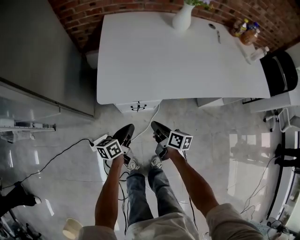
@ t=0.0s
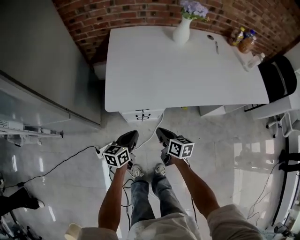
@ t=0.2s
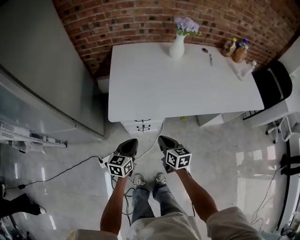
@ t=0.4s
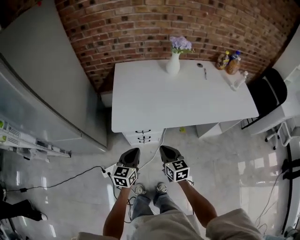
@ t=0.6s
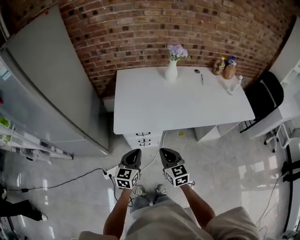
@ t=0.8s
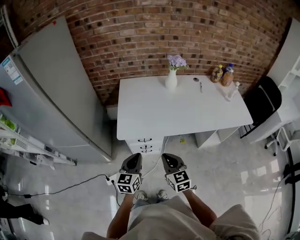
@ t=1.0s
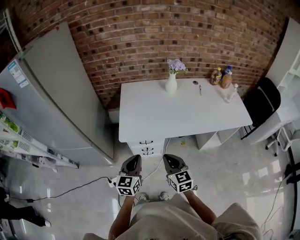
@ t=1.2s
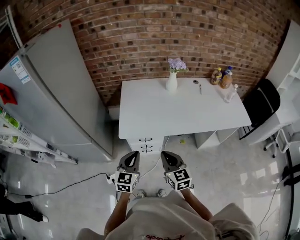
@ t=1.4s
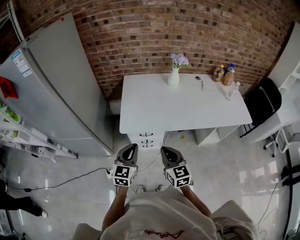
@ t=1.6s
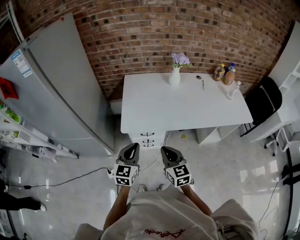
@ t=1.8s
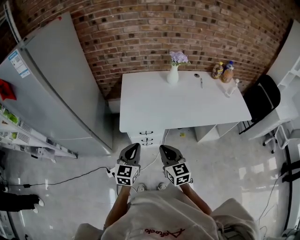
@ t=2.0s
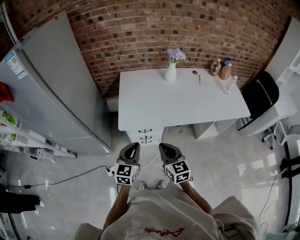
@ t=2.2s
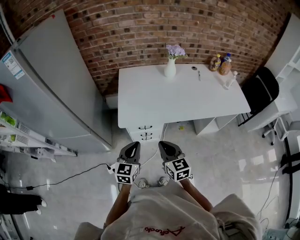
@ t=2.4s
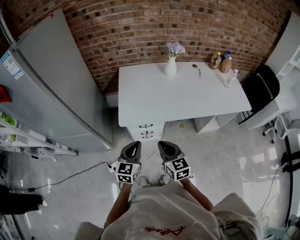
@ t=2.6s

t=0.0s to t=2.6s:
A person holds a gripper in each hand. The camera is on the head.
t=0.0s to t=1.2s: Both grippers travel together upward, some 30 cm. The right gripper twists approximately 50 degrees counterclockwise, seen from behind. Meanwhile the left gripper rotates around the line of its fingers by approximately 40 degrees, clockwise from behind.
t=1.2s to t=2.6s: The grippers stay close to where they were, moving slightly.

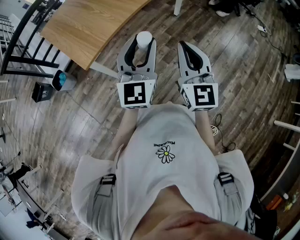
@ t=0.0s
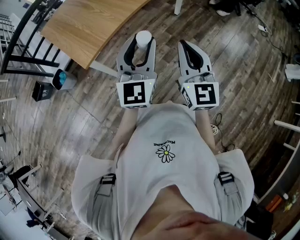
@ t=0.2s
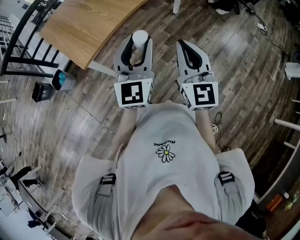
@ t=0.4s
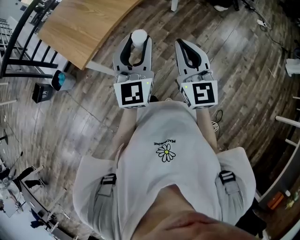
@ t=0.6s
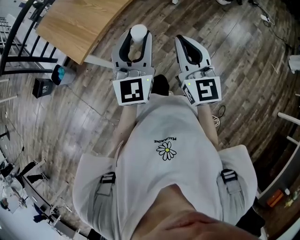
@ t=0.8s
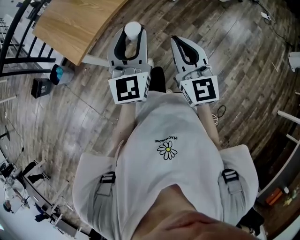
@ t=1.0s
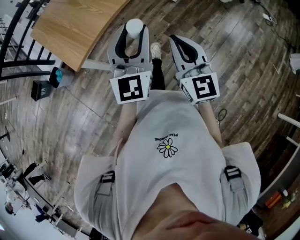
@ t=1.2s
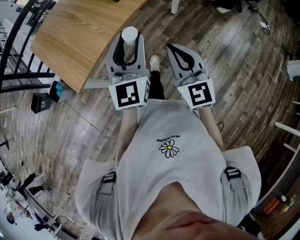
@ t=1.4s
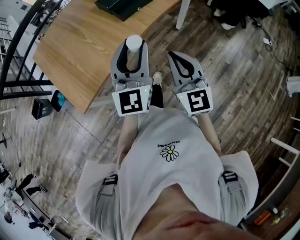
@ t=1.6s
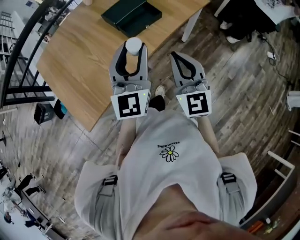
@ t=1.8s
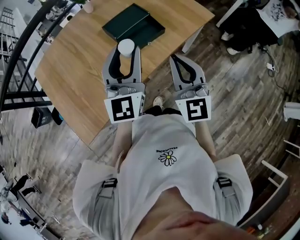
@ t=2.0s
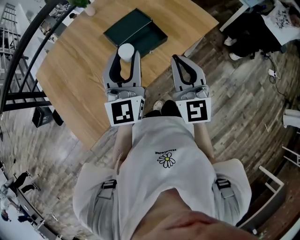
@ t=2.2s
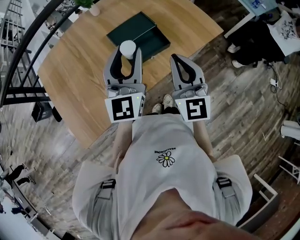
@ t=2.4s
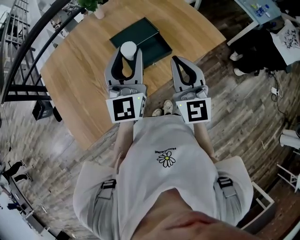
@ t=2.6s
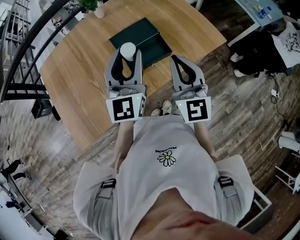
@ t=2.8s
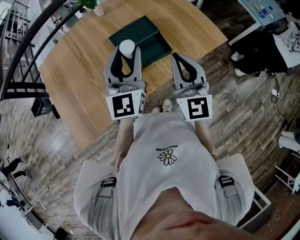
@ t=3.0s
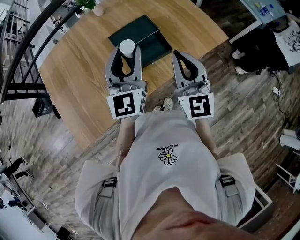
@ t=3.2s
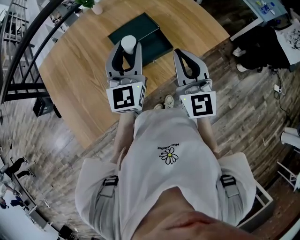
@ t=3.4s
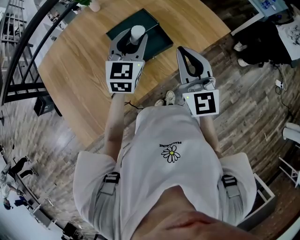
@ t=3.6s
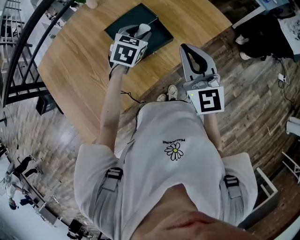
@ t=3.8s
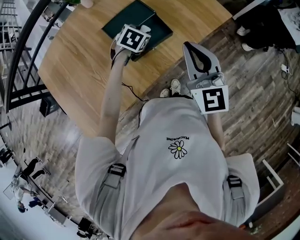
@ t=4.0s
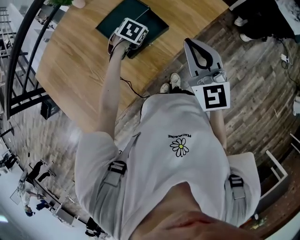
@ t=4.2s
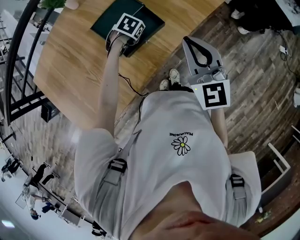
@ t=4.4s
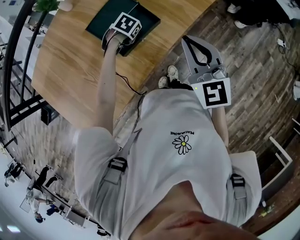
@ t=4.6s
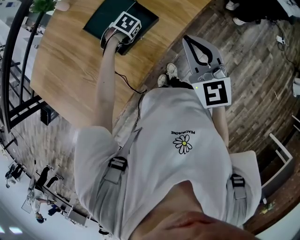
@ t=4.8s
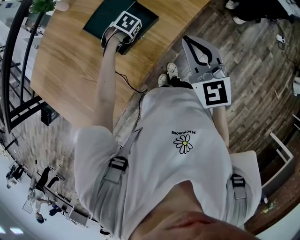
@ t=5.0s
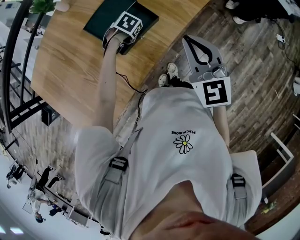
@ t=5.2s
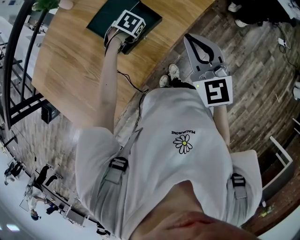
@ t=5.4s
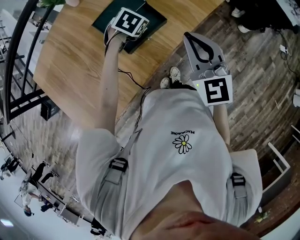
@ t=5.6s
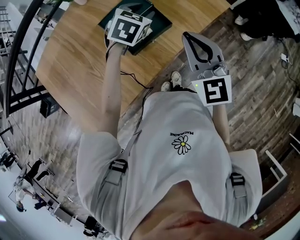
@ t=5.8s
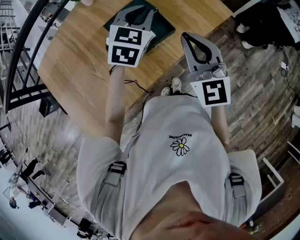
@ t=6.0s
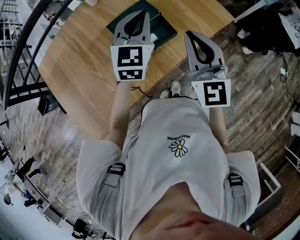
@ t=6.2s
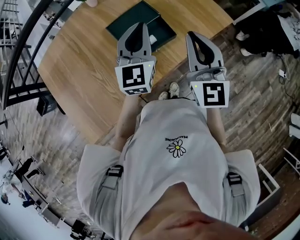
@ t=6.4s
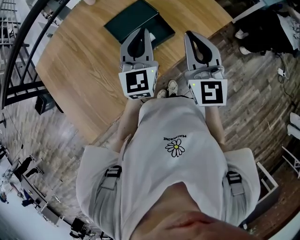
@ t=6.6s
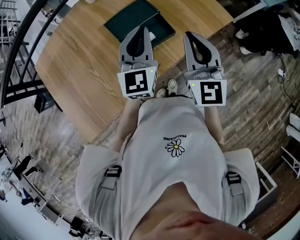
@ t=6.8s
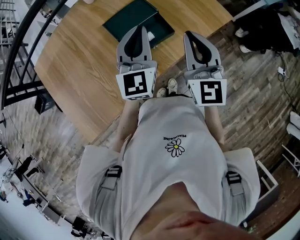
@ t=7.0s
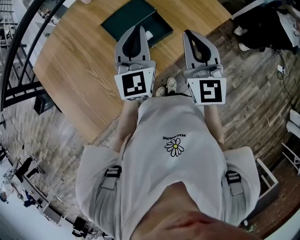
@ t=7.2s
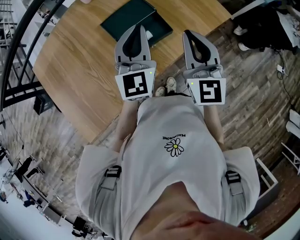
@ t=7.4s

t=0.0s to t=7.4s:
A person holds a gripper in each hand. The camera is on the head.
t=0.0s to t=1.4s: The left gripper moves forward, some 15 cm; the right gripper moves forward and downward, about 15 cm.
t=1.4s to t=3.0s: The pair of grippers is taken forward, roughly 40 cm.
t=3.0s to t=4.4s: The right gripper heads downward, covering some 5 cm. The left gripper moves downward, about 35 cm, and tilts its fingers some 80 degrees downward.
t=4.4s to t=6.0s: The left gripper moves upward, some 25 cm, tips its fingers upward by roughly 50 degrees, and closes its fingers, while the right gripper moves some 5 cm.
t=6.0s to t=7.4s: The left gripper shifts approximately 5 cm backward, and turns by approximately 30 degrees.

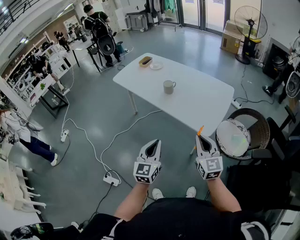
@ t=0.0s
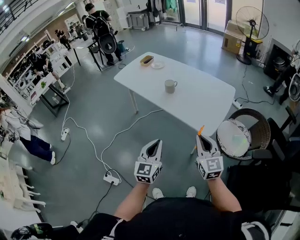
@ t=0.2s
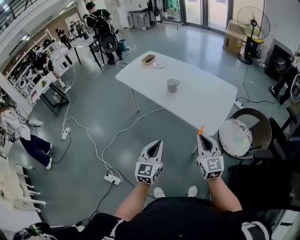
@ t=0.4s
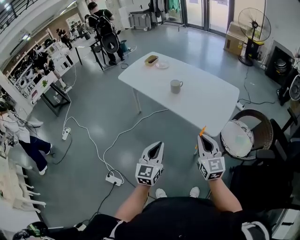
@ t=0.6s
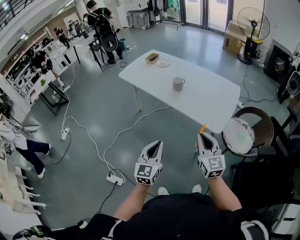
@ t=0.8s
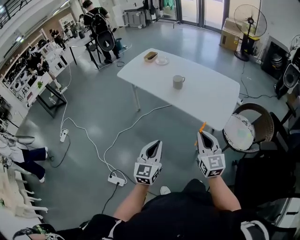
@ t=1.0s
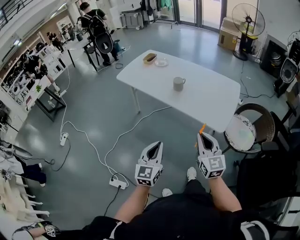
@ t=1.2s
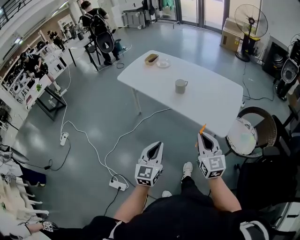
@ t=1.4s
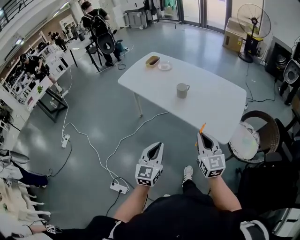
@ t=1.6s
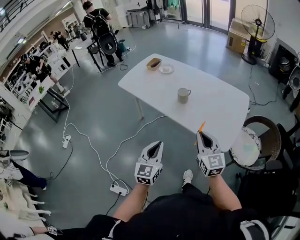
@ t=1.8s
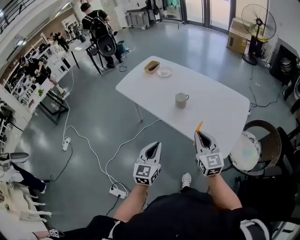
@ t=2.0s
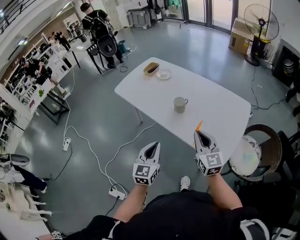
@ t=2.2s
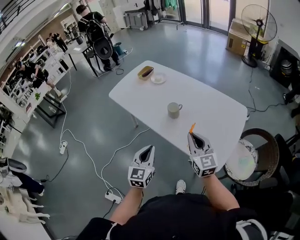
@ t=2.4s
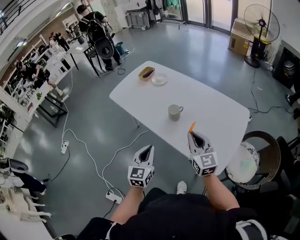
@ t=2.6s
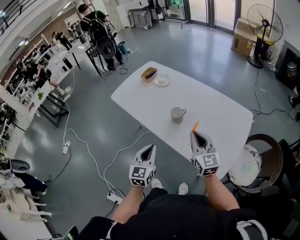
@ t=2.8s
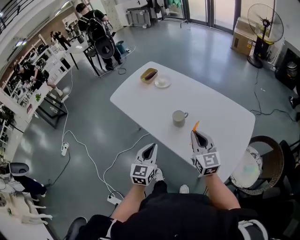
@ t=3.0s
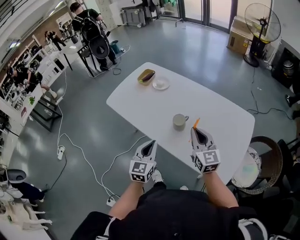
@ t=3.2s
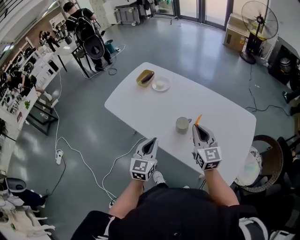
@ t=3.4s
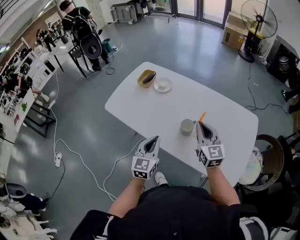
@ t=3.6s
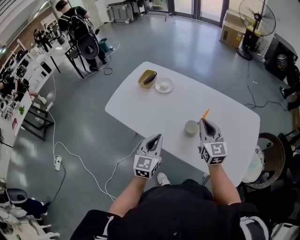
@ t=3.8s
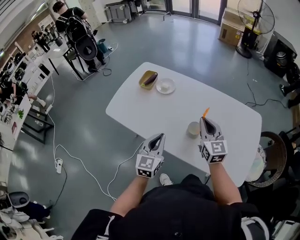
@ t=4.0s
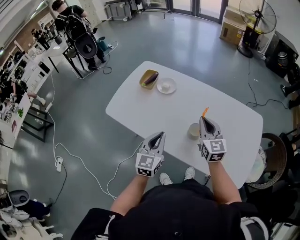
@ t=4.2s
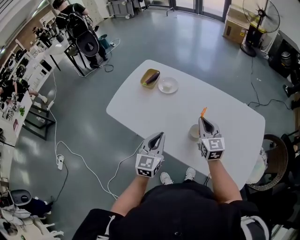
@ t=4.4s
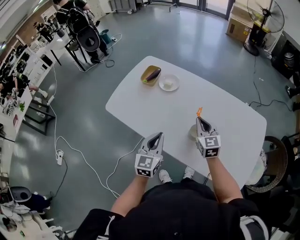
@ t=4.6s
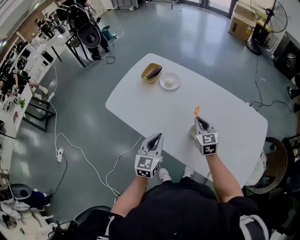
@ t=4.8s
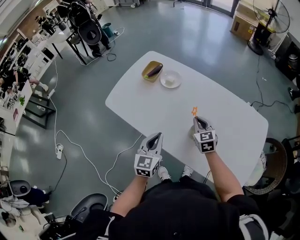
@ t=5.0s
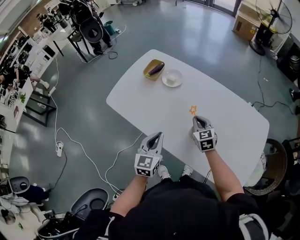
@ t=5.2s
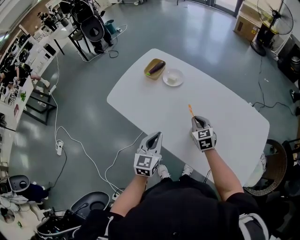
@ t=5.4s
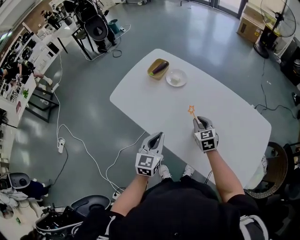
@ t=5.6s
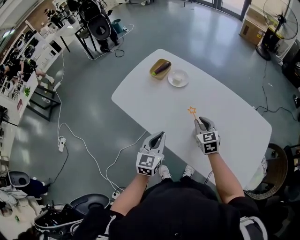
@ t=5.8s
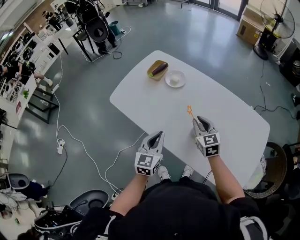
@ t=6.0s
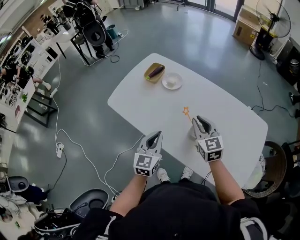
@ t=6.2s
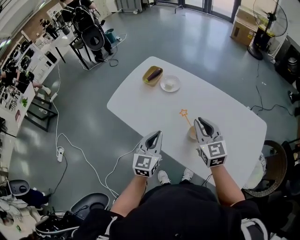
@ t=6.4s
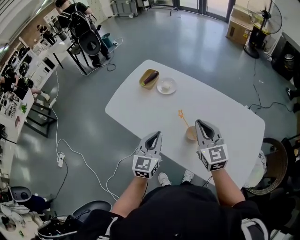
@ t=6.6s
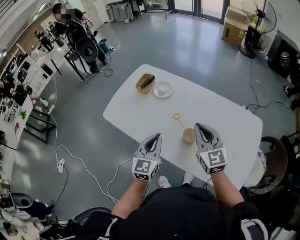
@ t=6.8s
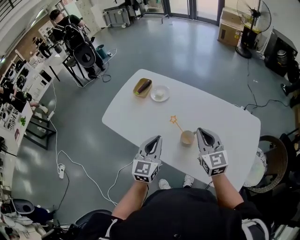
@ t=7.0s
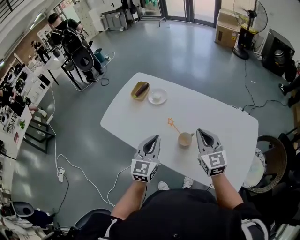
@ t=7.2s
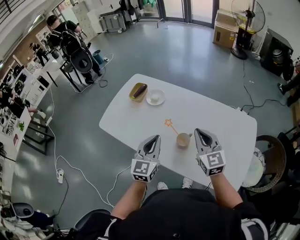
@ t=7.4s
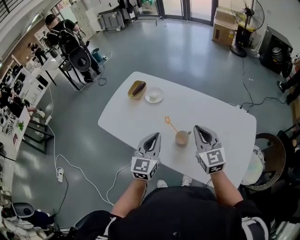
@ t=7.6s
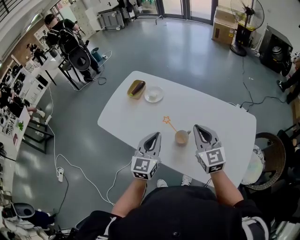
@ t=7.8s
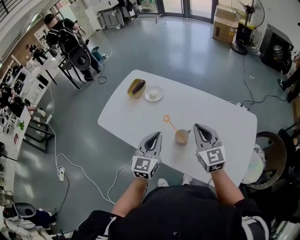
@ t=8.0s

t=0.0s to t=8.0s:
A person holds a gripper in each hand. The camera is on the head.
t=0.0s to t=1.6s: The two grippers go some 15 cm to the left and forward.
t=1.6s to t=3.2s: The two grippers go approximately 35 cm forward.
t=3.2s to t=4.8s: The left gripper heads forward and to the left, covering approximately 15 cm; the right gripper goes roughly 25 cm forward, downward and to the left, and turns by about 20 degrees.
t=4.8s to t=6.4s: The right gripper moves upward, some 10 cm.
t=6.4s to t=8.0s: Both grippers travel together to the right, some 10 cm.

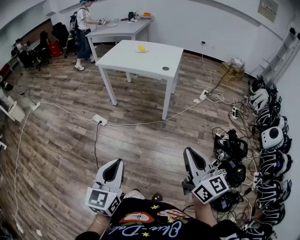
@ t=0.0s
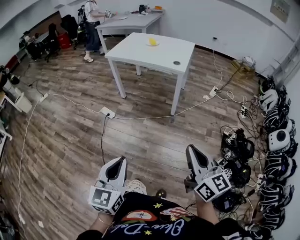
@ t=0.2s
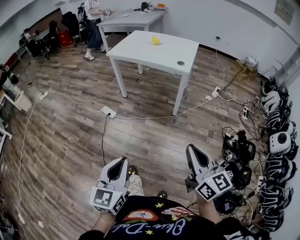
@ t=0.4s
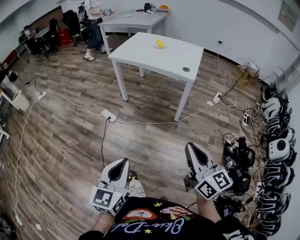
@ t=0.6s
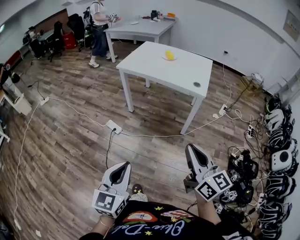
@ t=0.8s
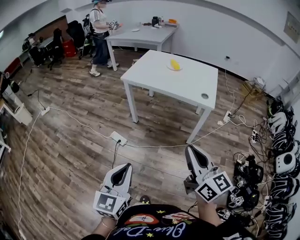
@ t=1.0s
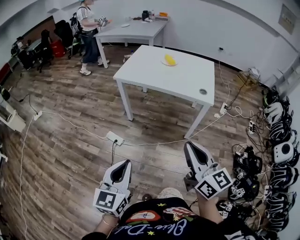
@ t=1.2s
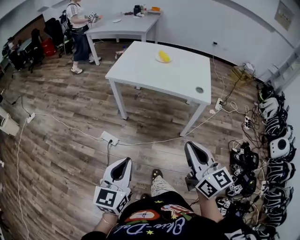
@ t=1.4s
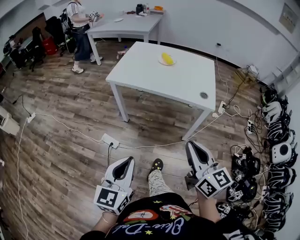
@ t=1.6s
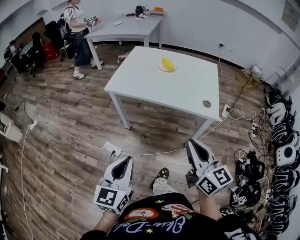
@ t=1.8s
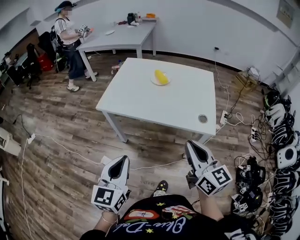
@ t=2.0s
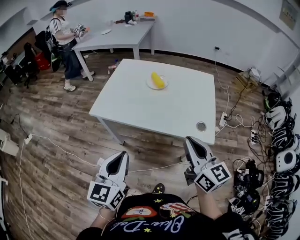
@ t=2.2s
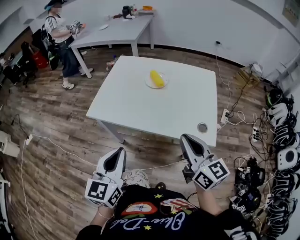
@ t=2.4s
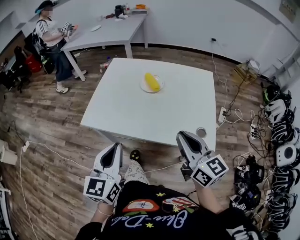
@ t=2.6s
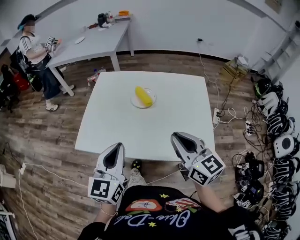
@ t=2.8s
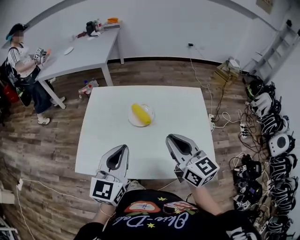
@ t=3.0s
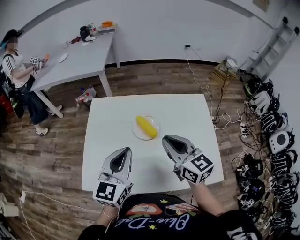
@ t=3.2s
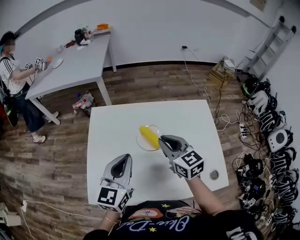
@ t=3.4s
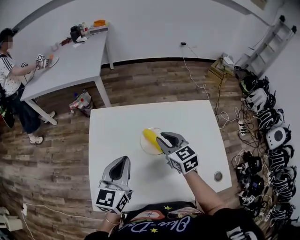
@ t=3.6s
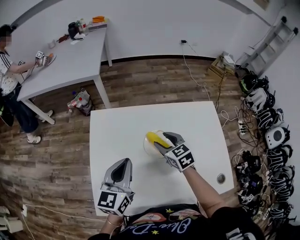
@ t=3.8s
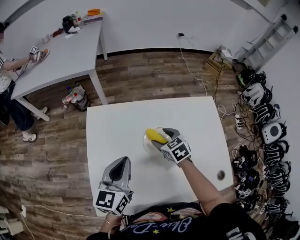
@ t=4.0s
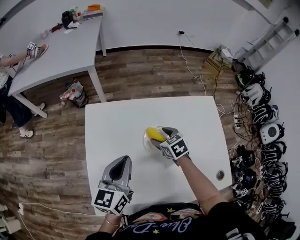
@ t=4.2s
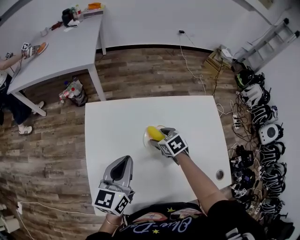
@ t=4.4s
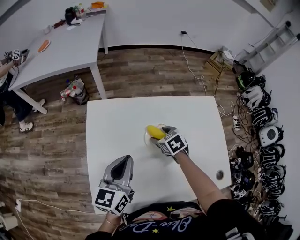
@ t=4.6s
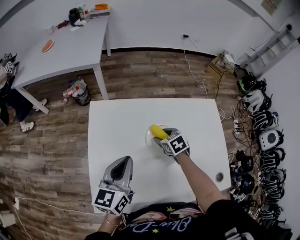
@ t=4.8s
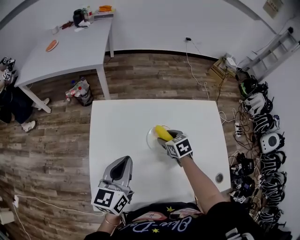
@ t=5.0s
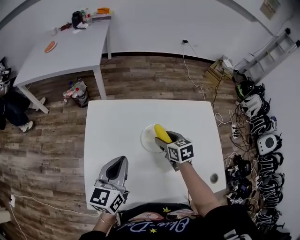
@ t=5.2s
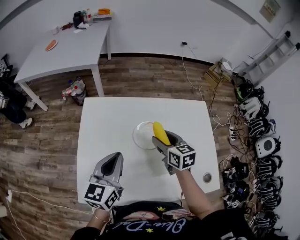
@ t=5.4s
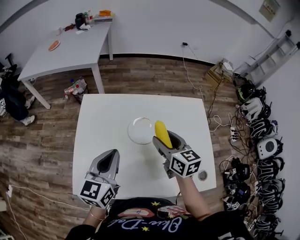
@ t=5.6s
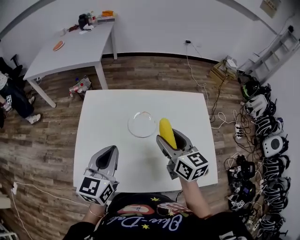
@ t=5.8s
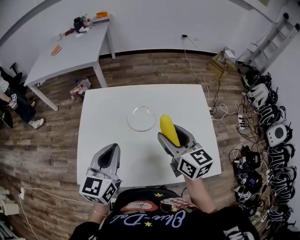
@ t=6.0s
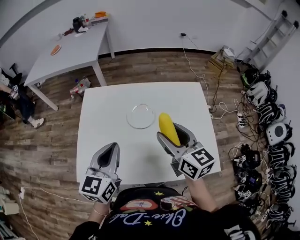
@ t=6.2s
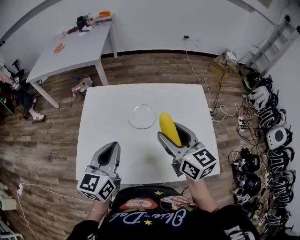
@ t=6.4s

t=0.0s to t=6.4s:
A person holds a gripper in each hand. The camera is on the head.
t=0.0s to t=1.6s: The two grippers travel together, forward and to the left, approximately 50 cm.
t=1.6s to t=3.2s: Both grippers are carried forward, approximately 60 cm.
t=3.2s to t=4.8s: The right gripper travels downward and forward by approximately 30 cm, angles its fingers downward, by approximately 50 degrees, and opens; the left gripper moves forward, to the left and downward, about 15 cm, and swivels roughly 20 degrees.
t=4.8s to t=6.4s: The left gripper is displaced backward and to the right by some 15 cm. Meanwhile the right gripper goes approximately 30 cm upward and backward, and tips its fingers upward by some 50 degrees.
